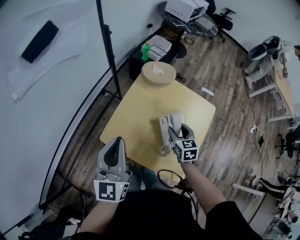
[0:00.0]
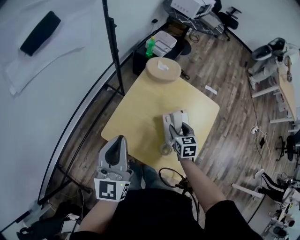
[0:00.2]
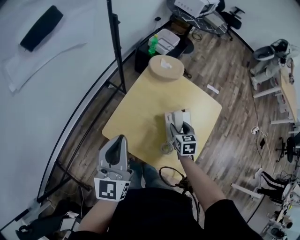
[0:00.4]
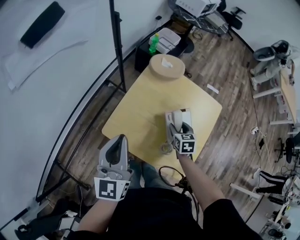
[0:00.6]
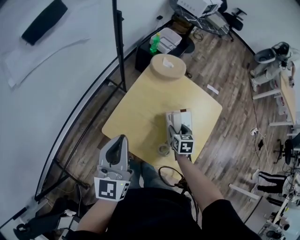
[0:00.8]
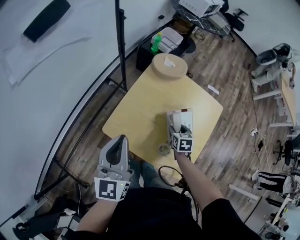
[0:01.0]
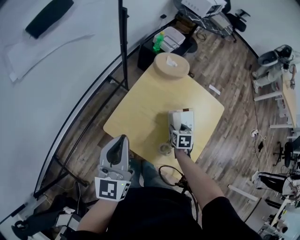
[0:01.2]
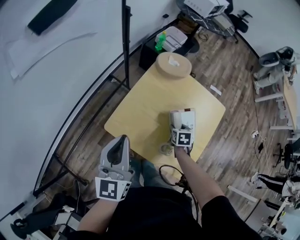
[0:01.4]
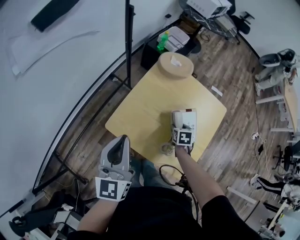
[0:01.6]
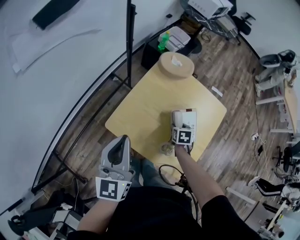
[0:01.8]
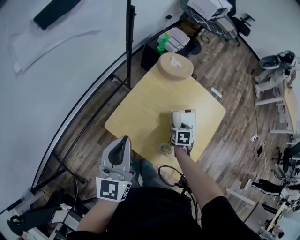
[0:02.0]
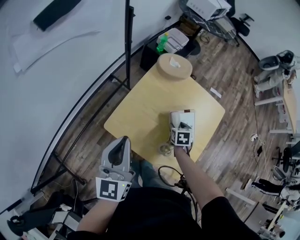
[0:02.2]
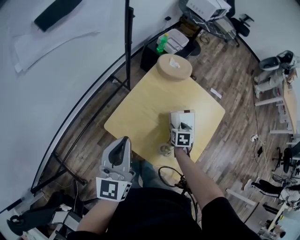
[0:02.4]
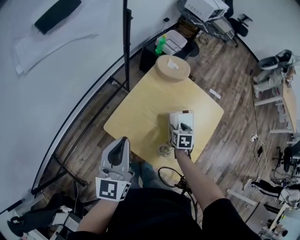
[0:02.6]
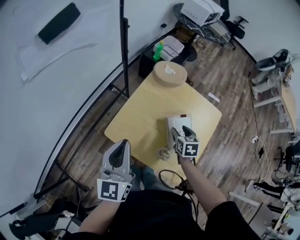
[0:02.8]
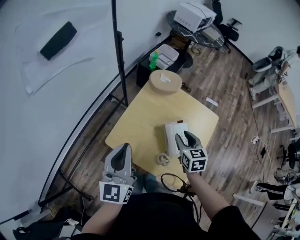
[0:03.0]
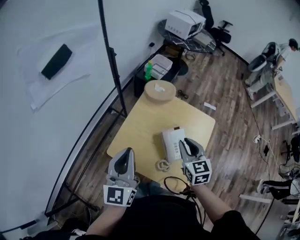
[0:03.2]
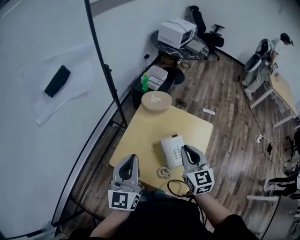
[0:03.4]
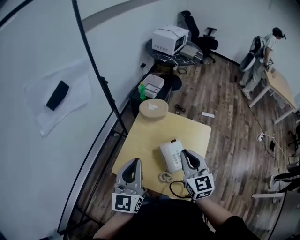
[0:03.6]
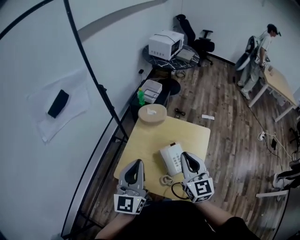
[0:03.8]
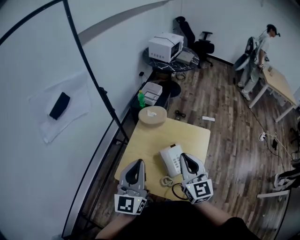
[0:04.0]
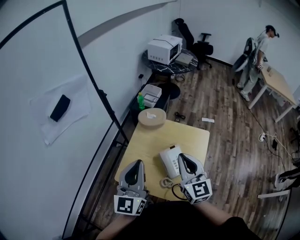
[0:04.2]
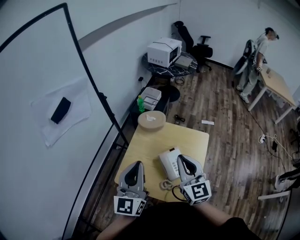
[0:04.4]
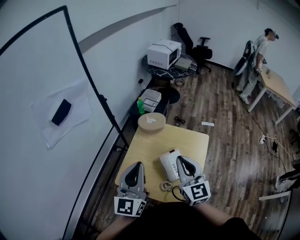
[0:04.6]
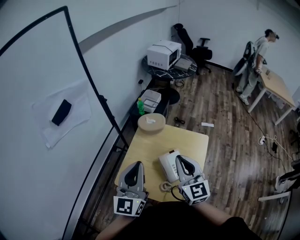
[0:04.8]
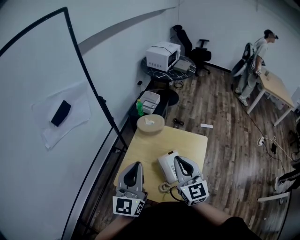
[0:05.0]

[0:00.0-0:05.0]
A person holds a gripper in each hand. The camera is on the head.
0.0 to 1.6 s: The left gripper shifts by about 5 cm. Meanwhile the right gripper moves downward, some 15 cm, and rotates about 30 degrees.
1.6 to 3.4 s: The left gripper shifts approximately 10 cm upward and to the right, while the right gripper travels upward by roughly 30 cm, points its fingers about 40 degrees further upward, and closes up.
3.4 to 5.0 s: The right gripper goes approximately 10 cm upward. Meanwhile the left gripper moves upward and to the right, some 10 cm.

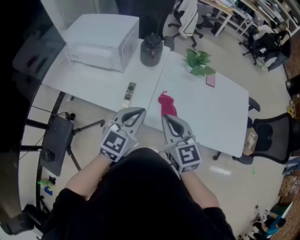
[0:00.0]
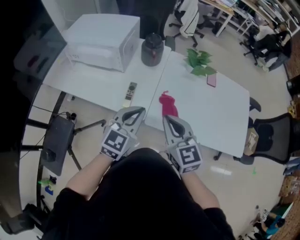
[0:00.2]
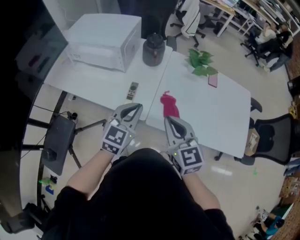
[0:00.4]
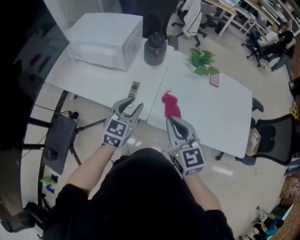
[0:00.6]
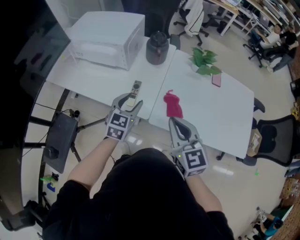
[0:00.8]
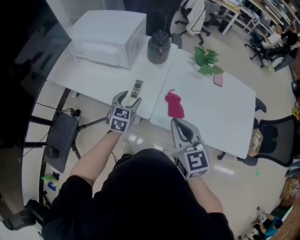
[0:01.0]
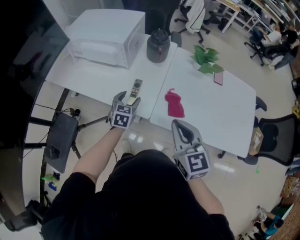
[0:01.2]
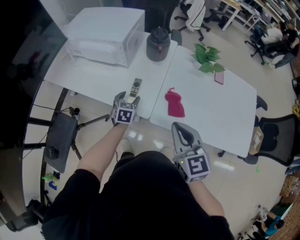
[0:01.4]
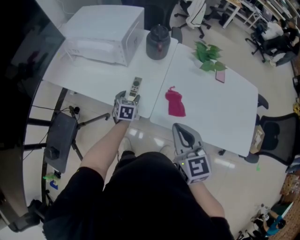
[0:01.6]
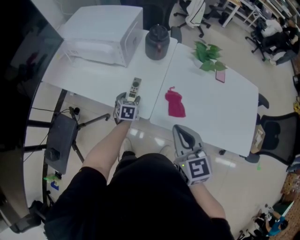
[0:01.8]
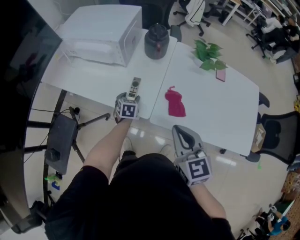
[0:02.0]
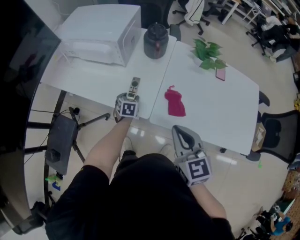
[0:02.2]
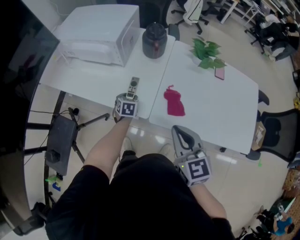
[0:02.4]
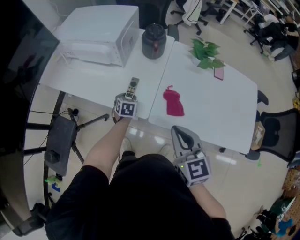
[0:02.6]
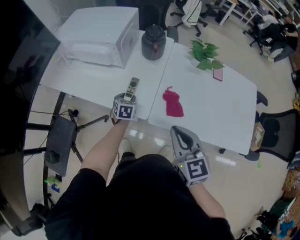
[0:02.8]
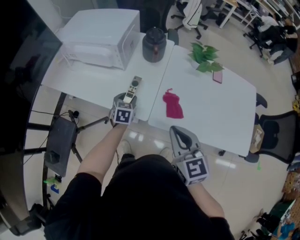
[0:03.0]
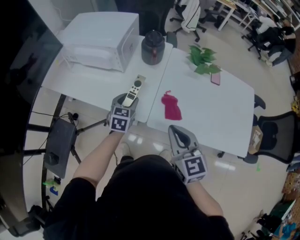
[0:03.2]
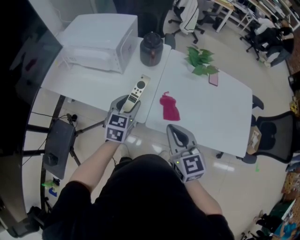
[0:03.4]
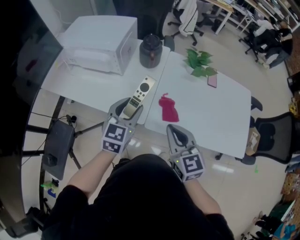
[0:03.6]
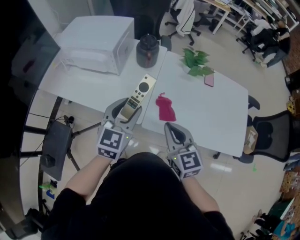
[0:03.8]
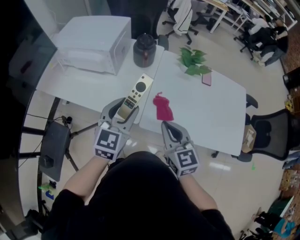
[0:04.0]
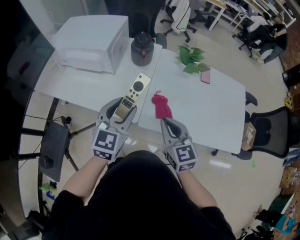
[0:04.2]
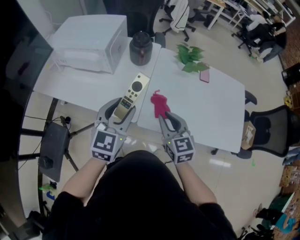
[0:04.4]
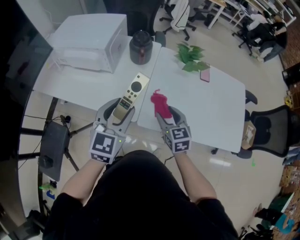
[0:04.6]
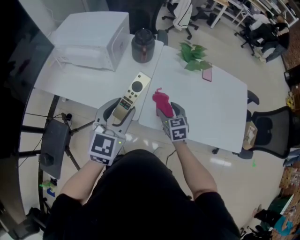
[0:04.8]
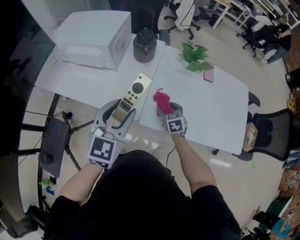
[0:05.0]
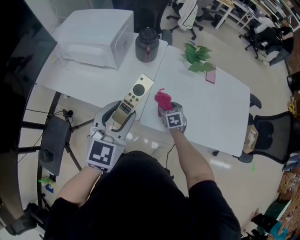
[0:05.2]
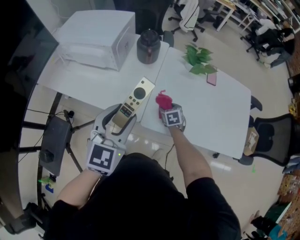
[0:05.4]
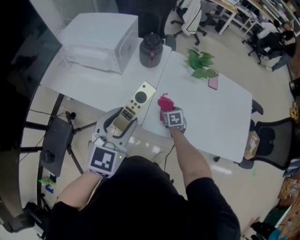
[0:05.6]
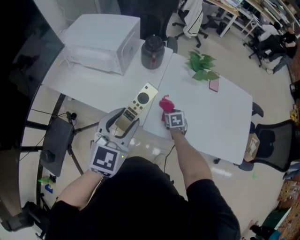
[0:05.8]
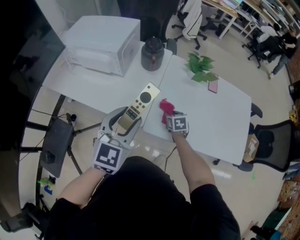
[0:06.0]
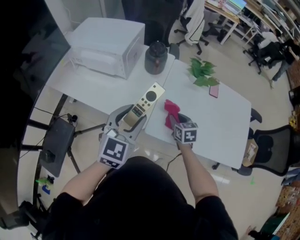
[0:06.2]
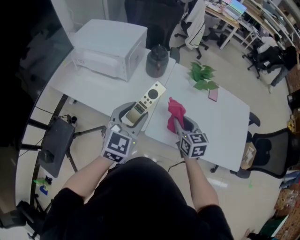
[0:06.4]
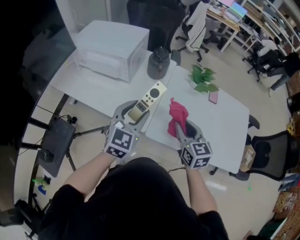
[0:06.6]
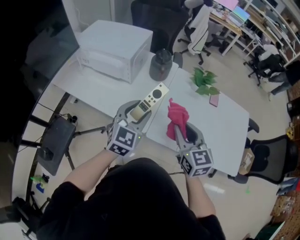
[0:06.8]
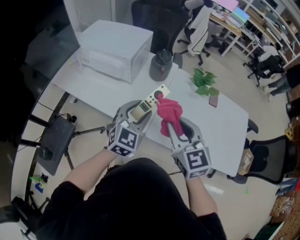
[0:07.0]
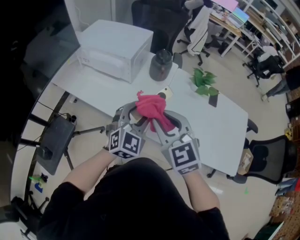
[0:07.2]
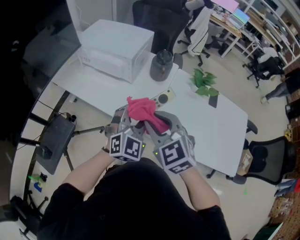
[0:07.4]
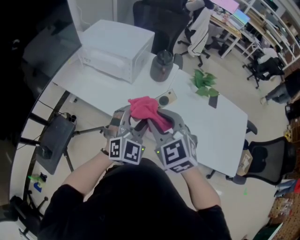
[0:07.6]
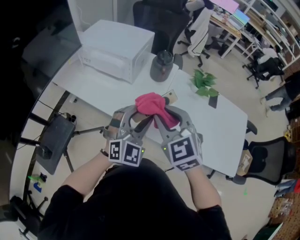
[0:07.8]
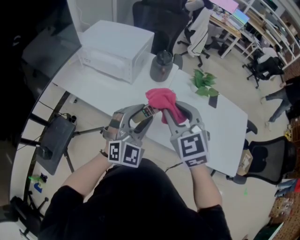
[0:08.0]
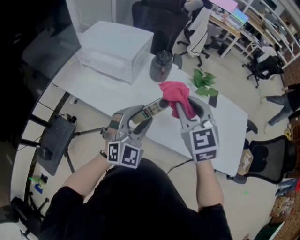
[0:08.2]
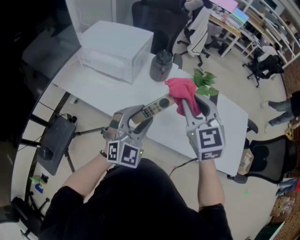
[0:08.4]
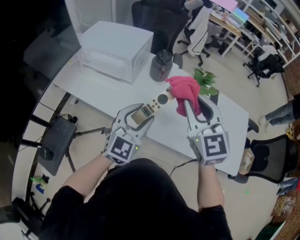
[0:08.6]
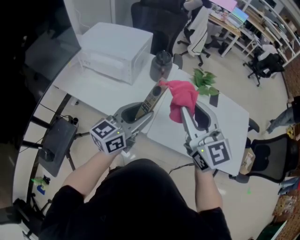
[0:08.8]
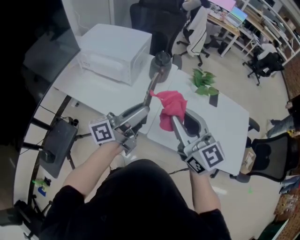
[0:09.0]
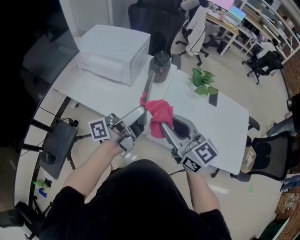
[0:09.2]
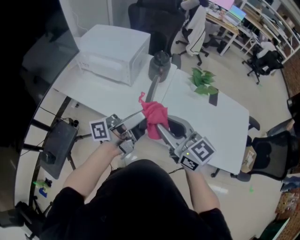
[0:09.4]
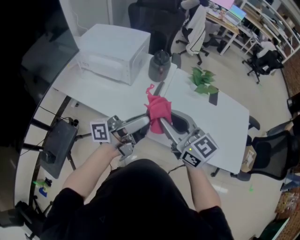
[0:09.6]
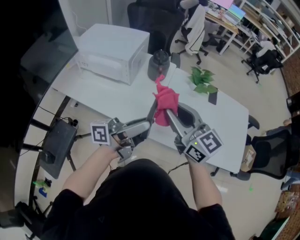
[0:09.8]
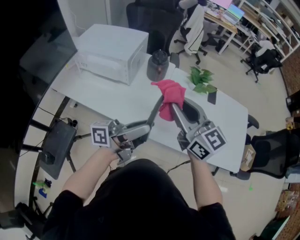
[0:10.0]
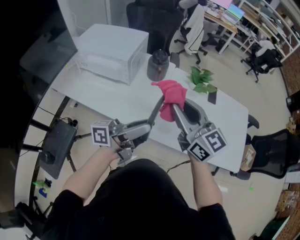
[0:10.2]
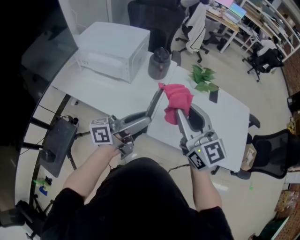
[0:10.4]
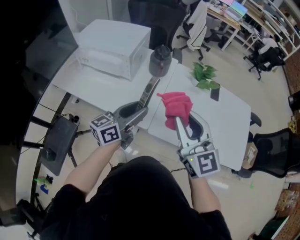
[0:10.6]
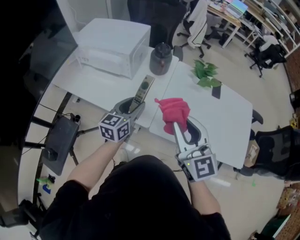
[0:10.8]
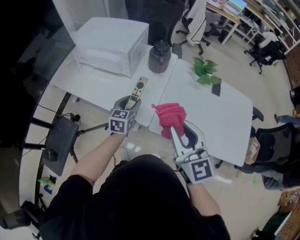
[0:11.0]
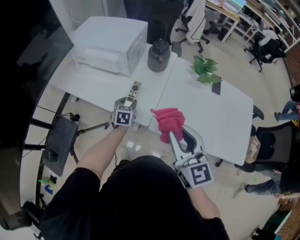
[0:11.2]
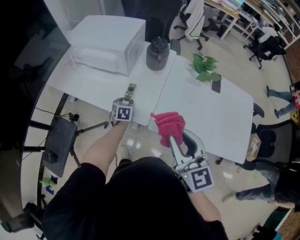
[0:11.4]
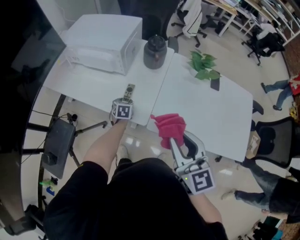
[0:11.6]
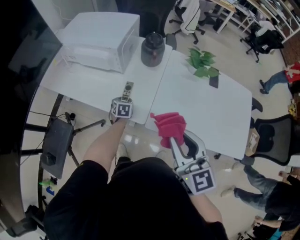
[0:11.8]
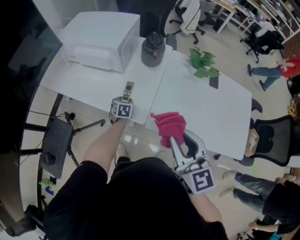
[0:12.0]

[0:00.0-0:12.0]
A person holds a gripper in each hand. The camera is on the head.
0.0 to 1.6 s: The left gripper is displaced downward and forward by about 30 cm, rotates about 40 degrees, and opens up.
1.6 to 3.0 s: The grippers make only small movements.
3.0 to 4.4 s: The left gripper travels upward and backward by roughly 25 cm, and changes its angle by some 30 degrees. Meanwhile the right gripper goes some 5 cm forward.
4.4 to 6.0 s: The right gripper heads downward and forward, covering roughly 25 cm, tips its fingers downward by roughly 30 degrees, and opens and closes again.
6.0 to 7.6 s: The left gripper rotates about 30 degrees. Meanwhile the right gripper heads upward and to the left, covering approximately 35 cm, and rotates around the line of its fingers by roughly 50 degrees, counterclockwise from behind.
7.6 to 9.0 s: The left gripper ends up about 5 cm from where it was, and rolls counterclockwise, seen from behind, by some 90 degrees. Meanwhile the right gripper moves to the right and upward, approximately 10 cm, and rotates roughly 40 degrees.
10.4 to 12.0 s: The right gripper goes some 10 cm downward and backward; the left gripper travels downward and forward by about 40 cm, and tilts its fingers roughly 70 degrees downward.

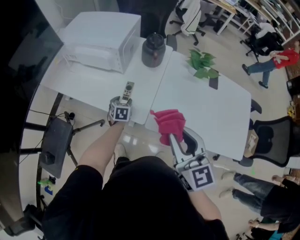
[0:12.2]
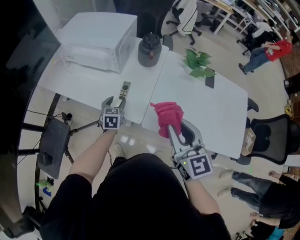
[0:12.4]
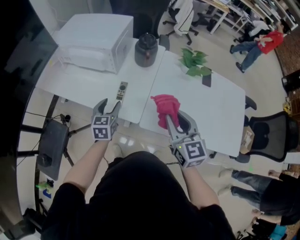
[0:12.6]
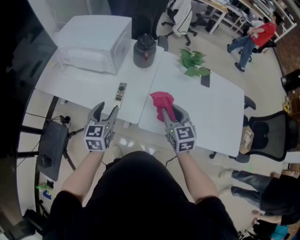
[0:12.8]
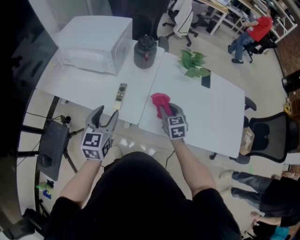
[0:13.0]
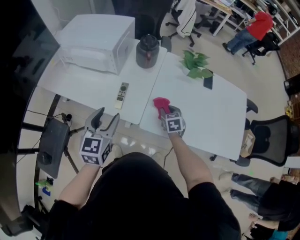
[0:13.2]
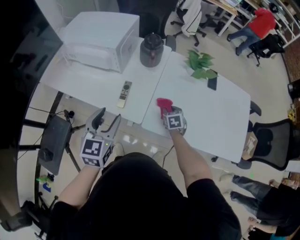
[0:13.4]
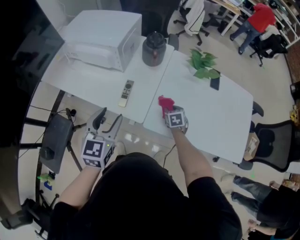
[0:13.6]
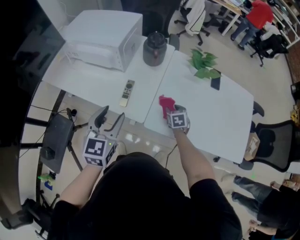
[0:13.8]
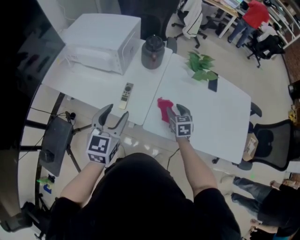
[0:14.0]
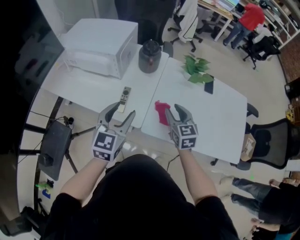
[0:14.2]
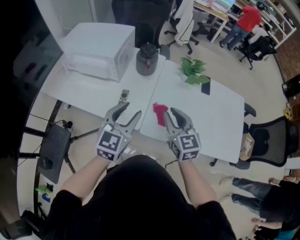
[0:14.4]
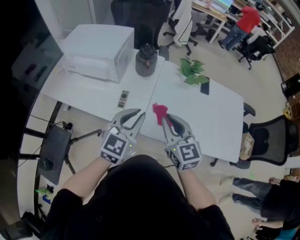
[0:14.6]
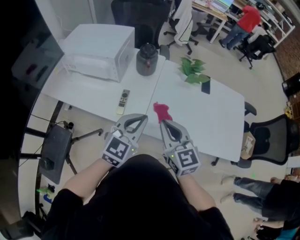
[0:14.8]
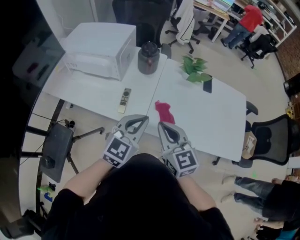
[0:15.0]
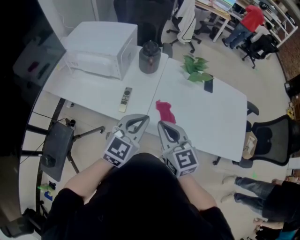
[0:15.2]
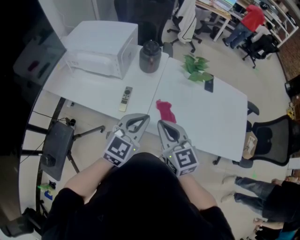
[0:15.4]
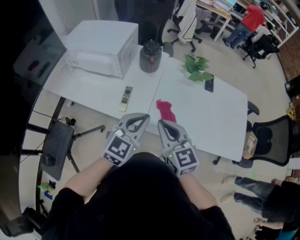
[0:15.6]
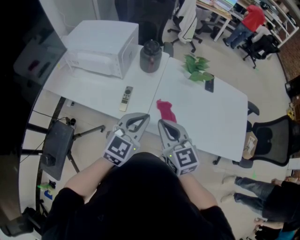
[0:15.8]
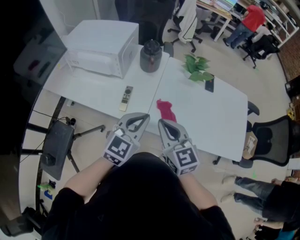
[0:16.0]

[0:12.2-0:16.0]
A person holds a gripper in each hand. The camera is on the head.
12.2 to 13.4 s: The right gripper moves downward and forward, some 35 cm, and points its fingers roughly 40 degrees further downward. Meanwhile the left gripper goes about 30 cm upward and backward, and swivels approximately 30 degrees.
13.4 to 14.8 s: The right gripper heads upward and backward, covering approximately 30 cm, points its fingers about 40 degrees further upward, and closes, while the left gripper is displaced to the right by roughly 15 cm, rotates approximately 30 degrees, and closes.
14.8 to 16.0 s: The grippers make only small movements.

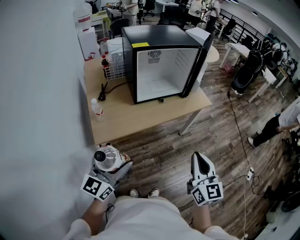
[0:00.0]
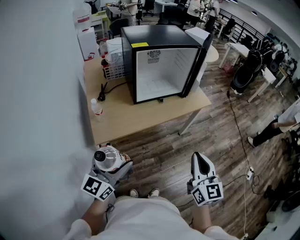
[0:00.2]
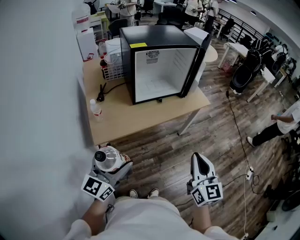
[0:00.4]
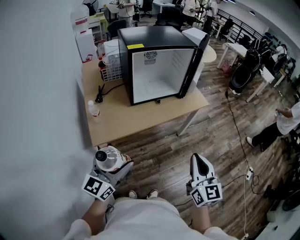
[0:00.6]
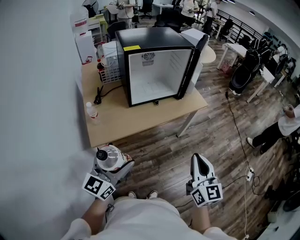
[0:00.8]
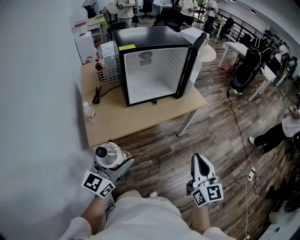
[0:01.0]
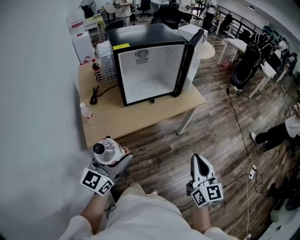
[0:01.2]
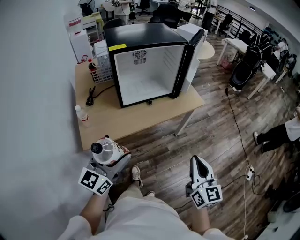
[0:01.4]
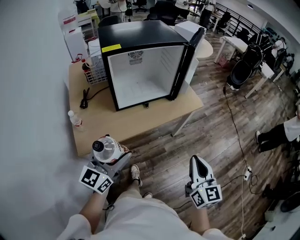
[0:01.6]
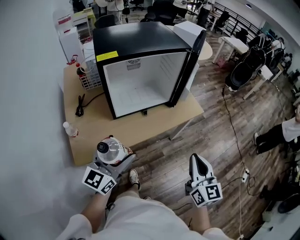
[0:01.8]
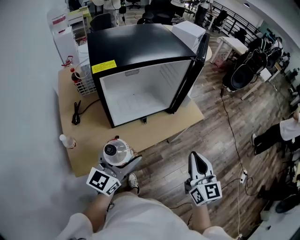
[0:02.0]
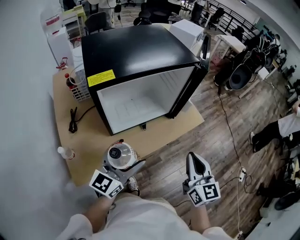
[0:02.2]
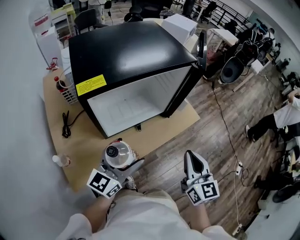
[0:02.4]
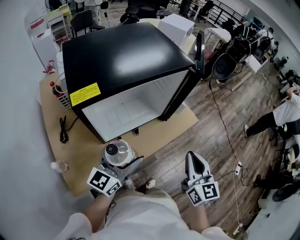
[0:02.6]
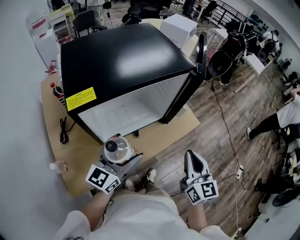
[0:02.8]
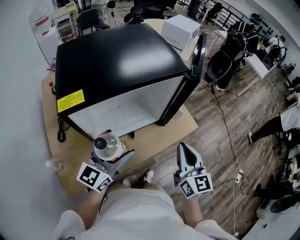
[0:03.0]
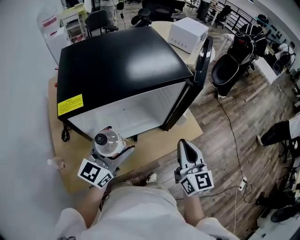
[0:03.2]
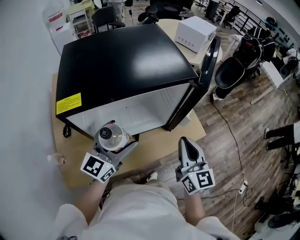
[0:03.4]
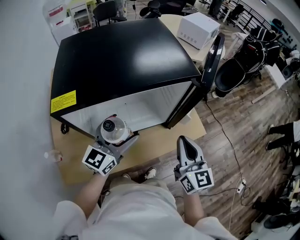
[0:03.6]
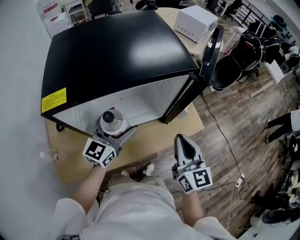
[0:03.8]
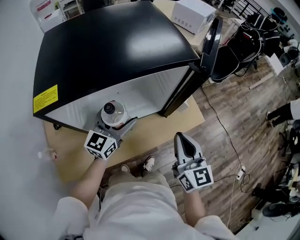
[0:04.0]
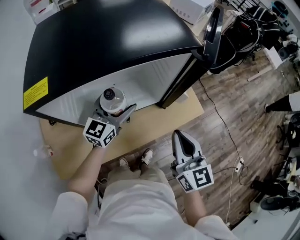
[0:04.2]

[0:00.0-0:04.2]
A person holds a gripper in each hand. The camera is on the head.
0.0 to 1.4 s: The left gripper shifts approximately 10 cm forward and to the right. The right gripper shifts about 10 cm to the right.
1.4 to 2.8 s: Both grippers move forward, approximately 30 cm.
2.8 to 4.2 s: The right gripper is displaced forward by about 10 cm. The left gripper moves forward and downward, about 20 cm.
